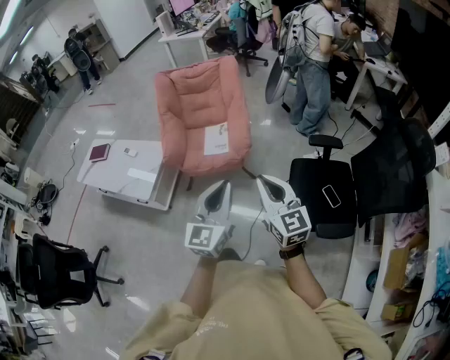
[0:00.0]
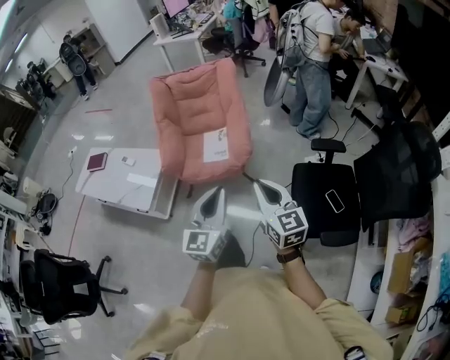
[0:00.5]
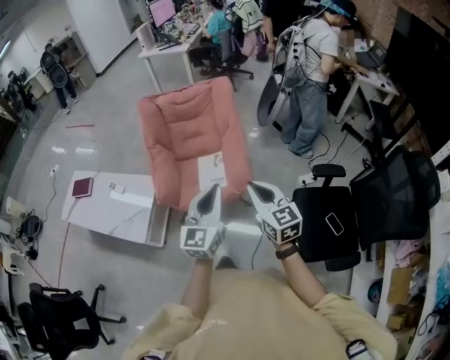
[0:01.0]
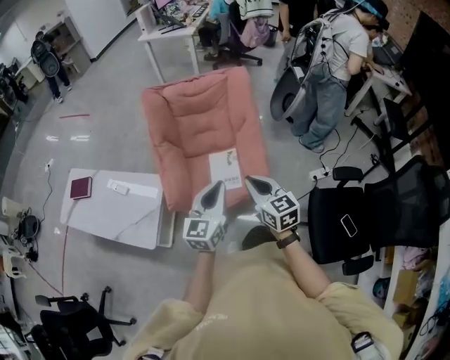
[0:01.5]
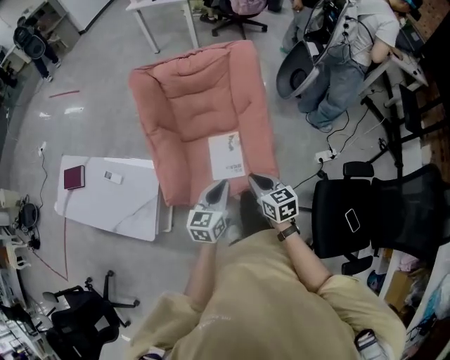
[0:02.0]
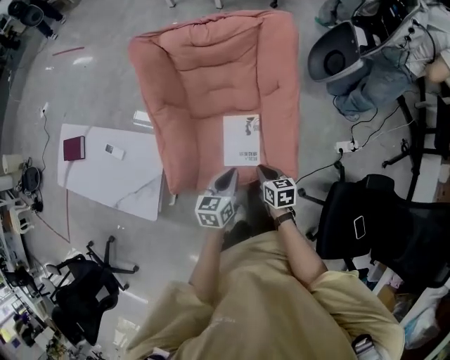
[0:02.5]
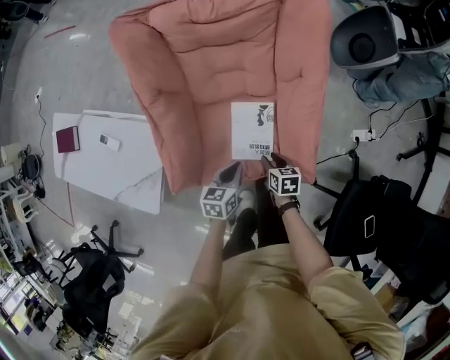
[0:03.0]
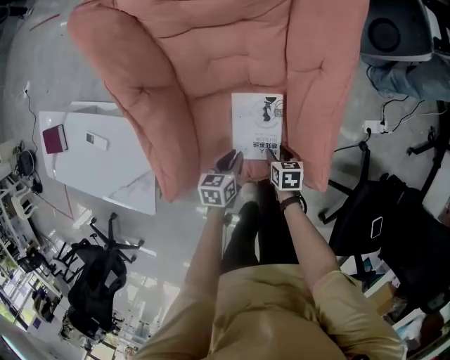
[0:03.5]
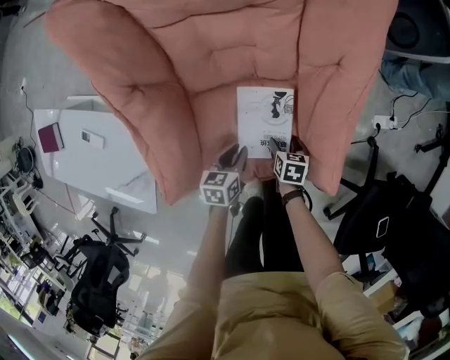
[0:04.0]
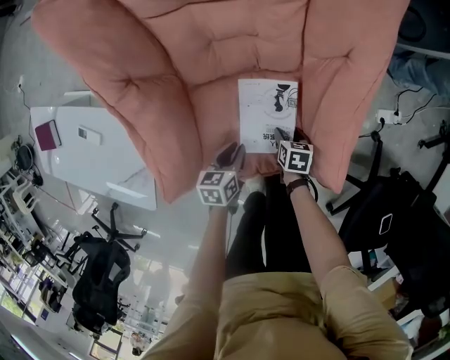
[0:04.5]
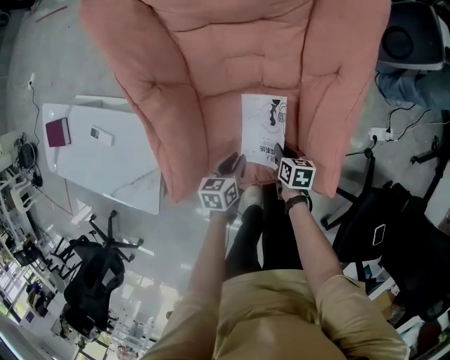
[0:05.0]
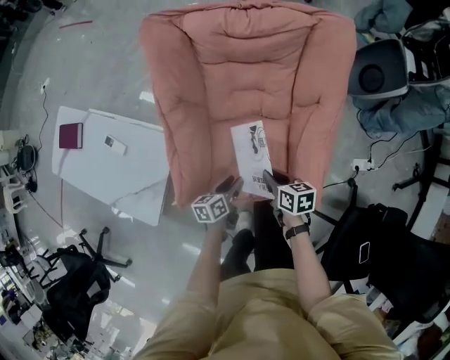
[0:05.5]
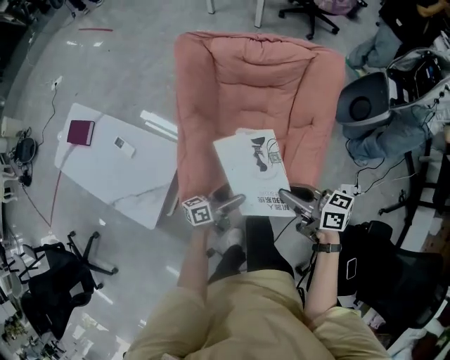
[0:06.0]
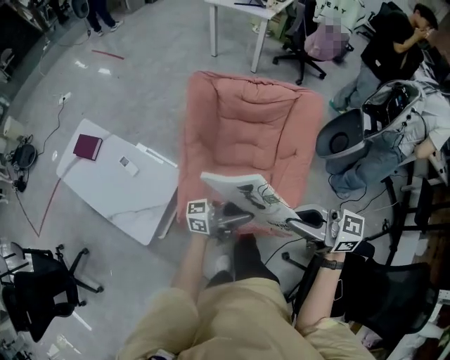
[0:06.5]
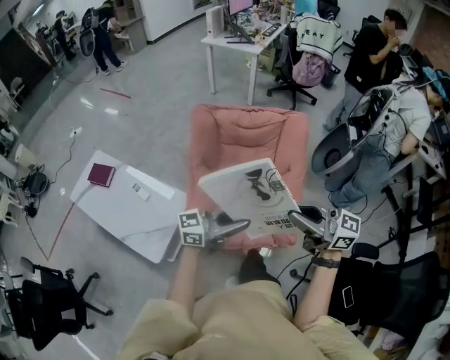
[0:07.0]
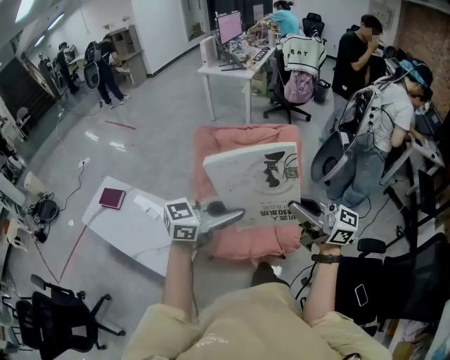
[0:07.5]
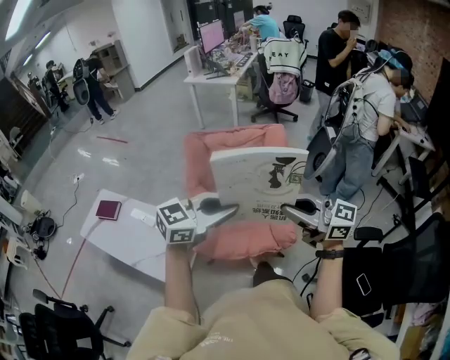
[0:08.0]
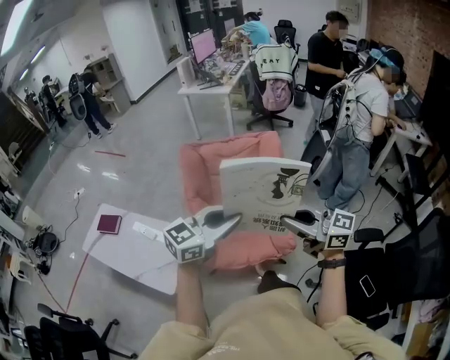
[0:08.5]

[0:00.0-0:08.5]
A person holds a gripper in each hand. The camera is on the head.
0:00.0 to 0:02.0: The pair of grippers is taken forward, roughly 50 cm. Both grippers move downward, approximately 20 cm. The right gripper turns by some 40 degrees. Meanwhile the left gripper rotates some 30 degrees.
0:02.0 to 0:04.0: The left gripper is displaced downward and forward by roughly 50 cm, and changes its angle by about 40 degrees, while the right gripper travels downward by about 50 cm, tips its fingers downward by roughly 40 degrees, and opens up.
0:04.0 to 0:06.5: The two grippers go approximately 60 cm upward. The left gripper points its fingers about 80 degrees further upward, and opens, then closes again. The right gripper angles its fingers upward, by approximately 70 degrees, and closes up.
0:06.5 to 0:08.5: The left gripper is displaced upward by roughly 20 cm, and tips its fingers downward by approximately 30 degrees. The right gripper shifts by approximately 15 cm, and turns by some 20 degrees.

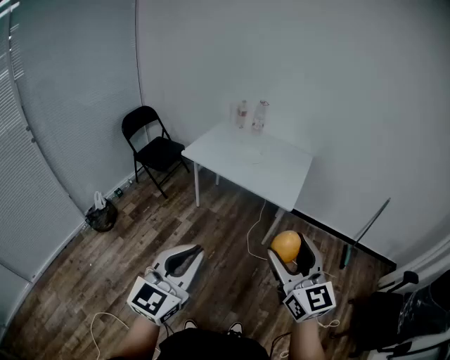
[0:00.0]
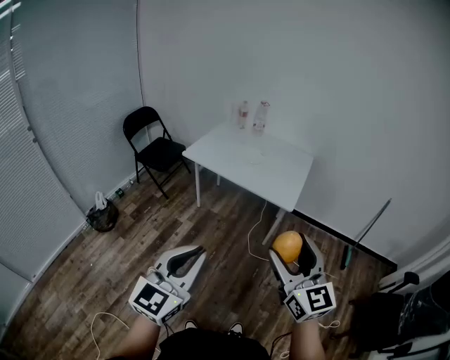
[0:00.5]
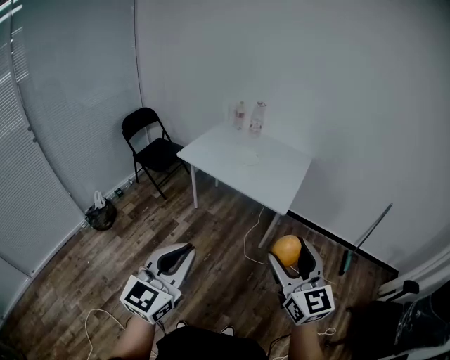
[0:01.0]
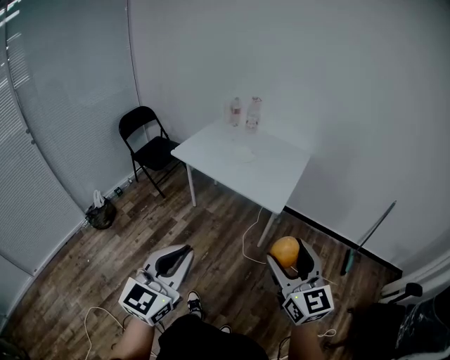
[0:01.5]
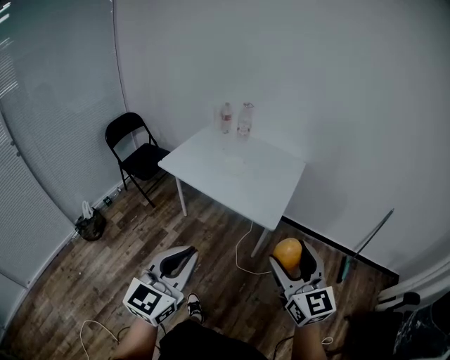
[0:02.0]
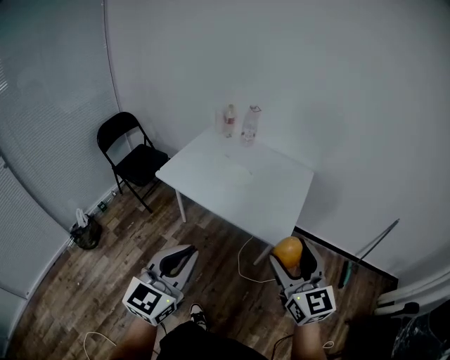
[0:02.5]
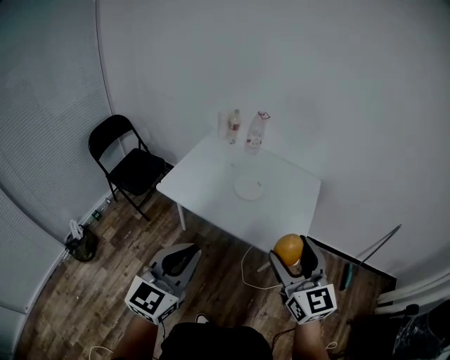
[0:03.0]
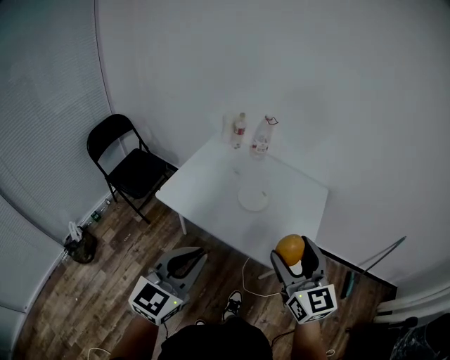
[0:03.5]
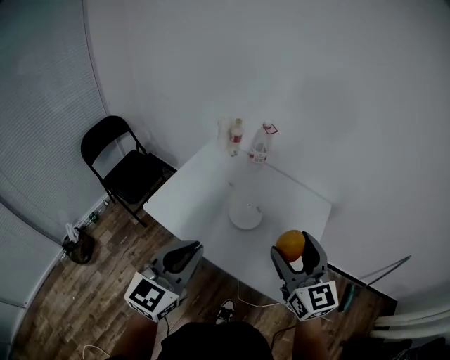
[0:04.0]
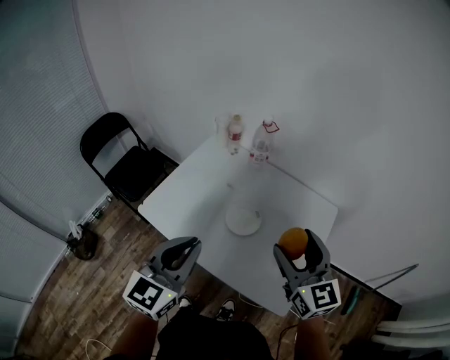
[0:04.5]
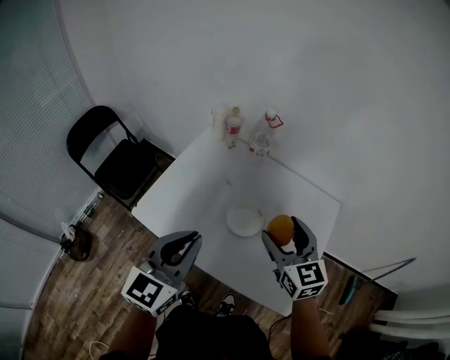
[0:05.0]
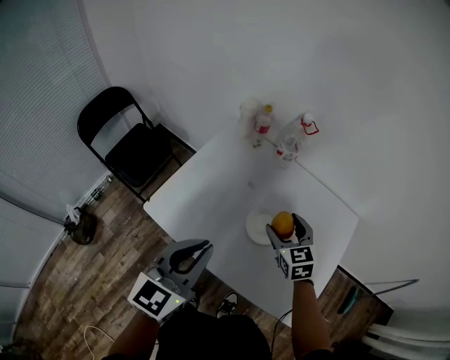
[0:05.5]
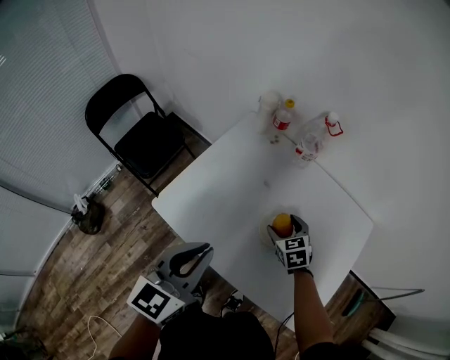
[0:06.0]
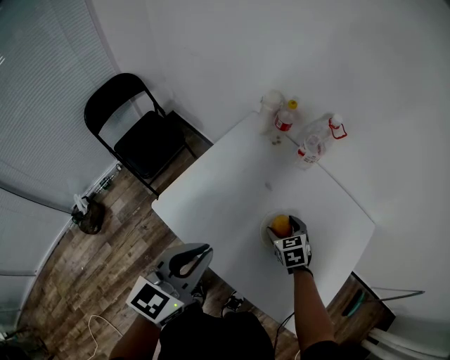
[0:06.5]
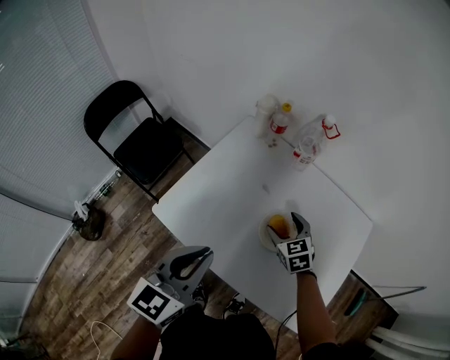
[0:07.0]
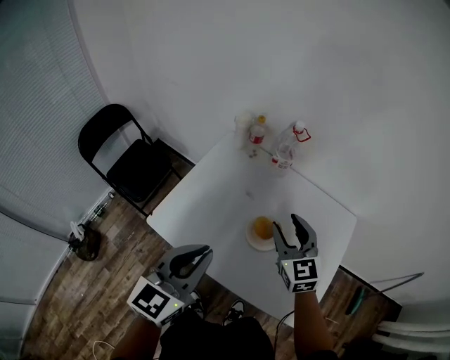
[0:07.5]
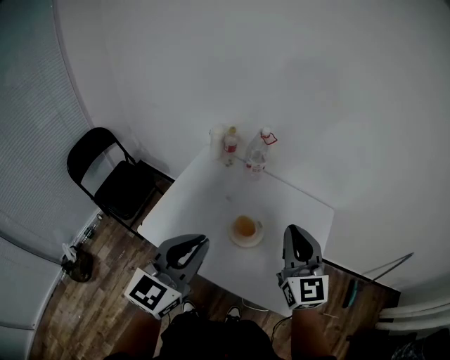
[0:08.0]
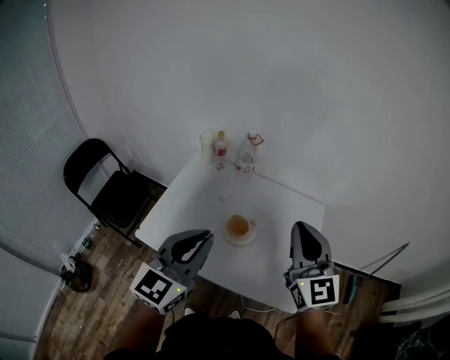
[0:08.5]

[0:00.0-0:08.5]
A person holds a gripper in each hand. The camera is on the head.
0:00.0 to 0:02.0: The grippers both shift forward and to the right by about 20 cm.
0:02.0 to 0:04.0: The two grippers travel together, forward, about 50 cm.
0:04.0 to 0:06.5: The right gripper moves downward and forward, about 50 cm, and tilts its fingers approximately 50 degrees downward, while the left gripper goes about 20 cm forward, downward and to the left.
0:06.5 to 0:08.5: The left gripper heads upward, to the right and backward, covering about 20 cm, and turns by some 20 degrees, while the right gripper heads upward and backward, covering some 50 cm, points its fingers about 60 degrees further upward, and closes its fingers.

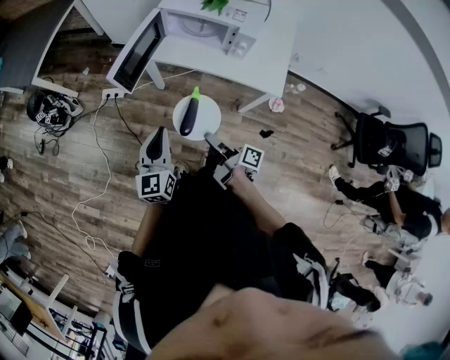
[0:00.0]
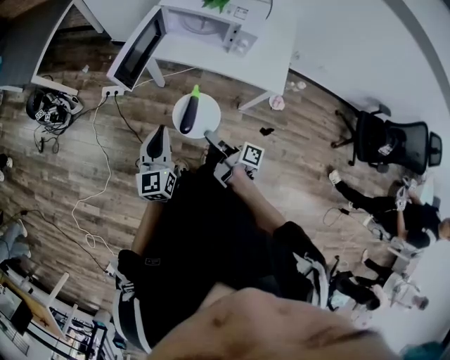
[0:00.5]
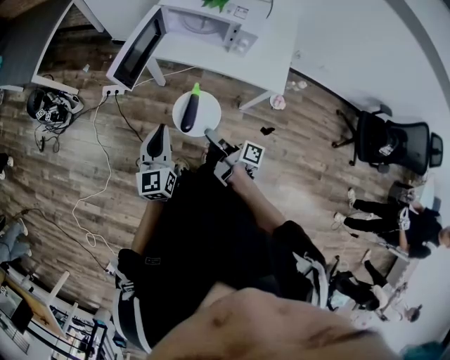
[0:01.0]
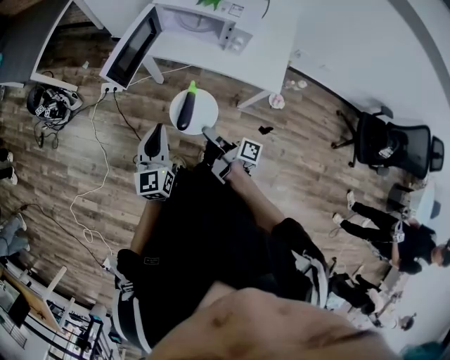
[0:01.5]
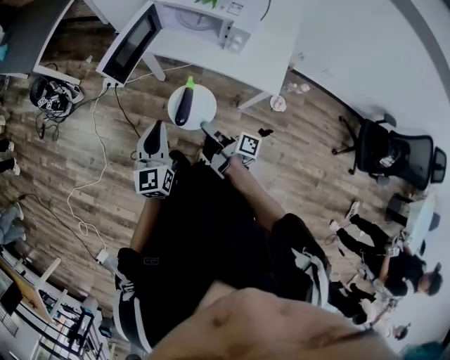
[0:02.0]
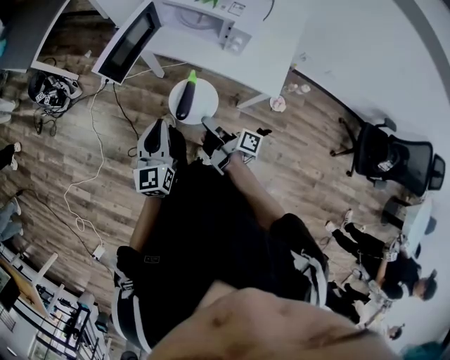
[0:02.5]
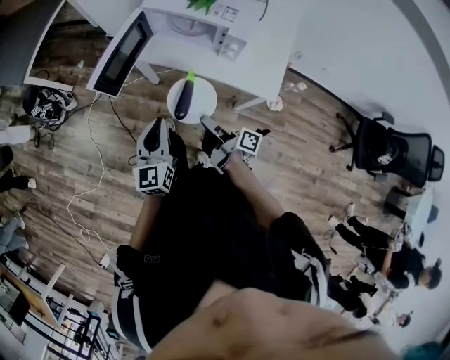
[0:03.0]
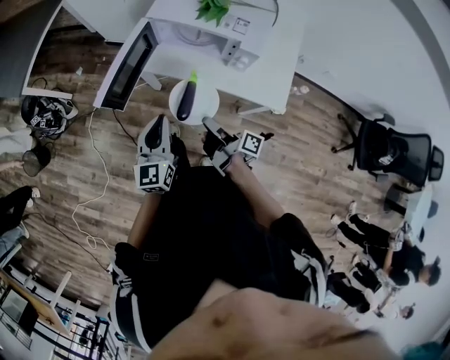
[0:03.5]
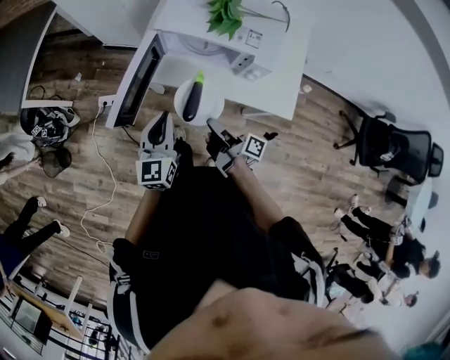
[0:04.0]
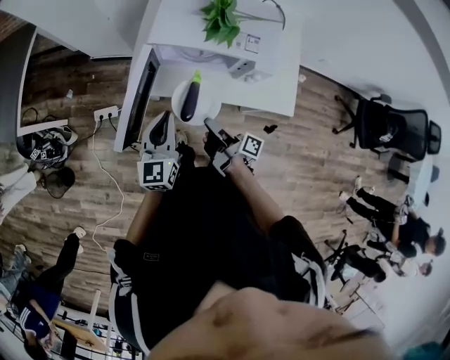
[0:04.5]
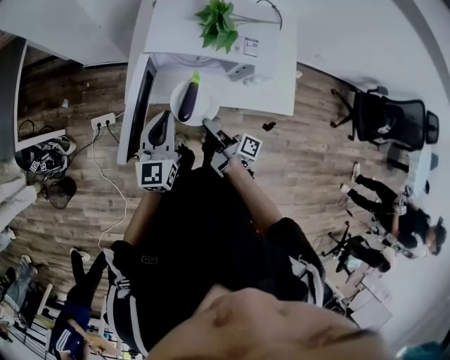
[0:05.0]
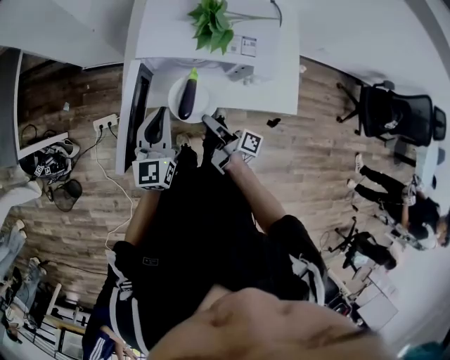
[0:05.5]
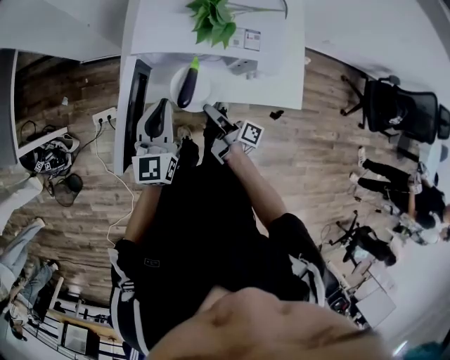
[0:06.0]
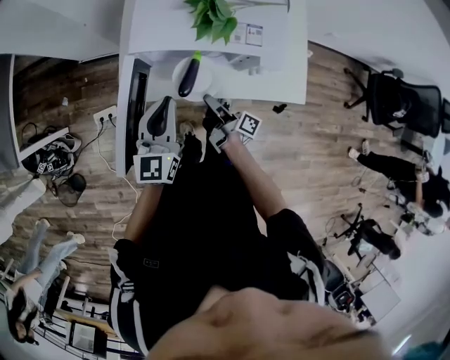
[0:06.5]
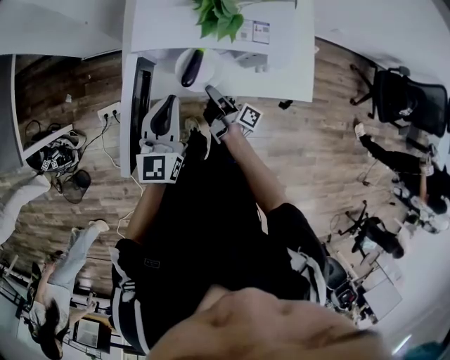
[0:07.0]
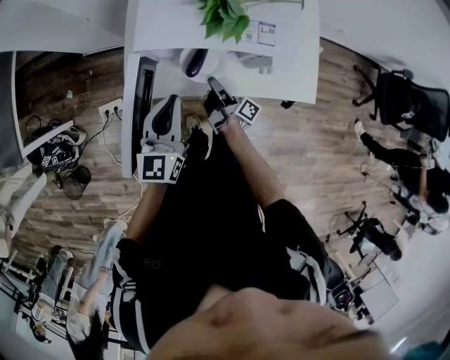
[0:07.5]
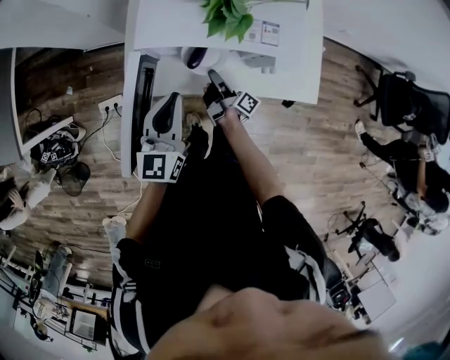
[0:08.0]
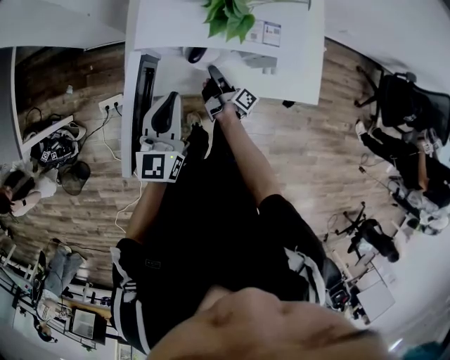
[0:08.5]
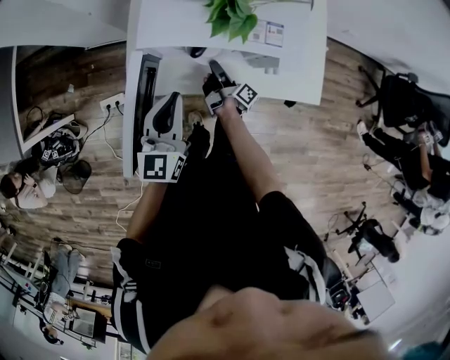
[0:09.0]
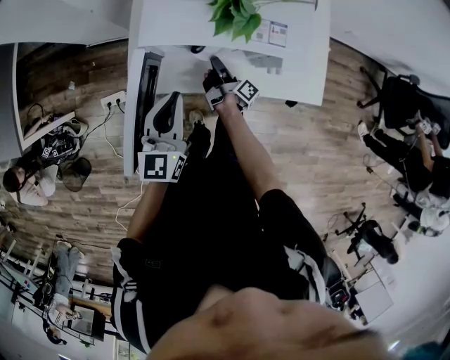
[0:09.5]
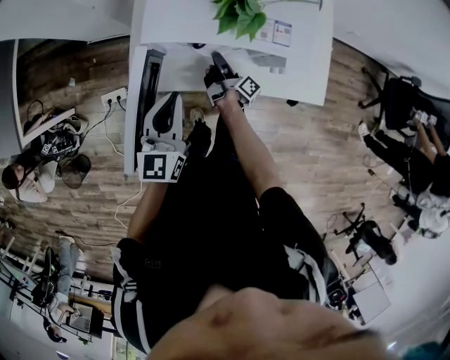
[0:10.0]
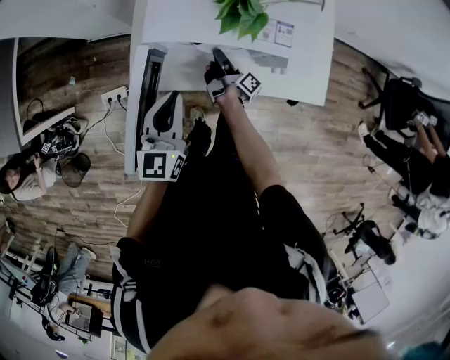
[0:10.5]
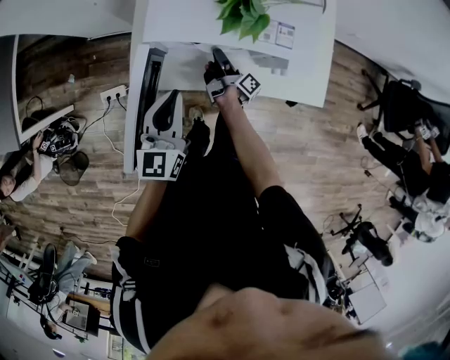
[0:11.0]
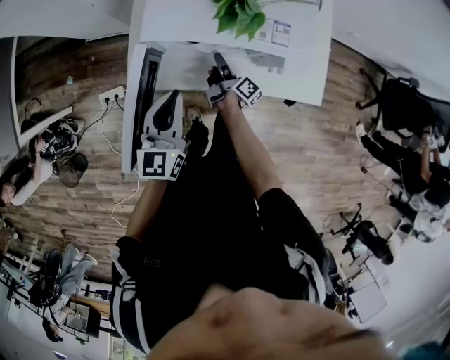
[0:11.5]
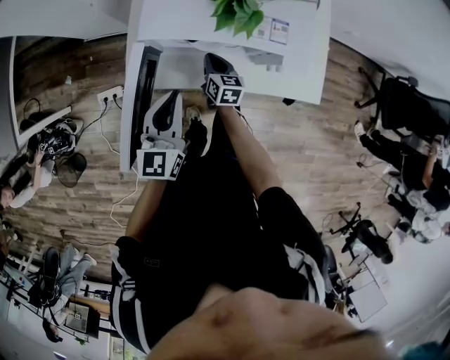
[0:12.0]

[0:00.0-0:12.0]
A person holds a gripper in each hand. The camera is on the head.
0:00.0 to 0:02.0: The left gripper ends up about 5 cm from where it was.
0:02.0 to 0:04.0: The left gripper changes place by approximately 25 cm.
0:04.0 to 0:06.0: The left gripper changes place by some 15 cm.
